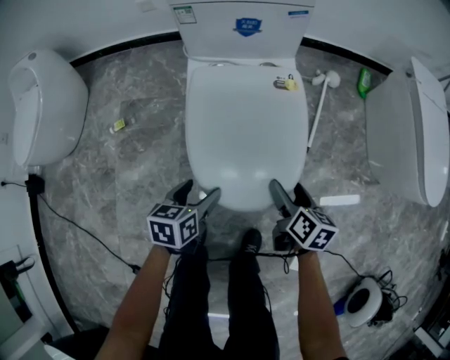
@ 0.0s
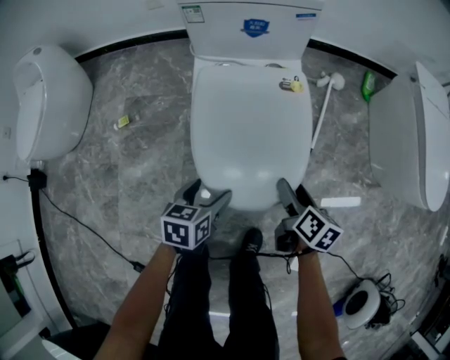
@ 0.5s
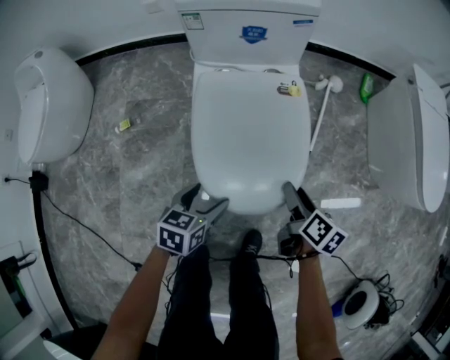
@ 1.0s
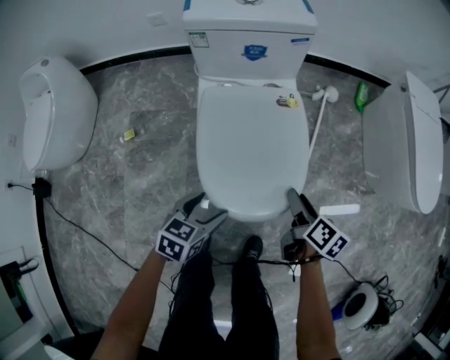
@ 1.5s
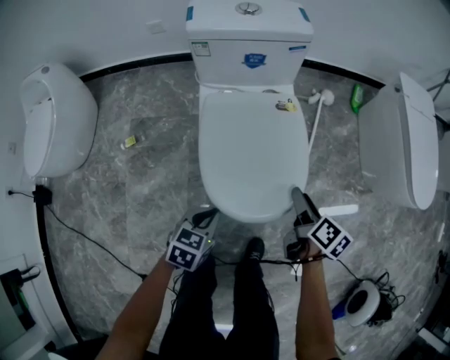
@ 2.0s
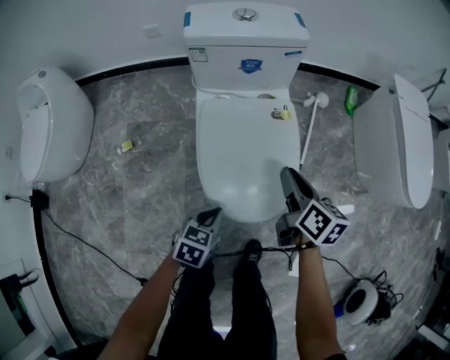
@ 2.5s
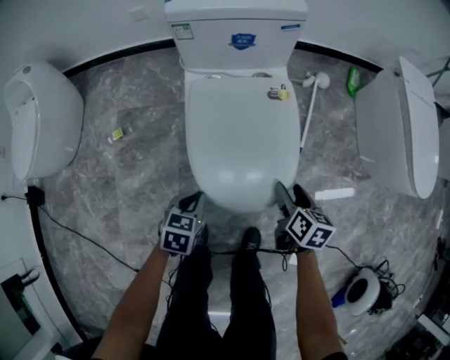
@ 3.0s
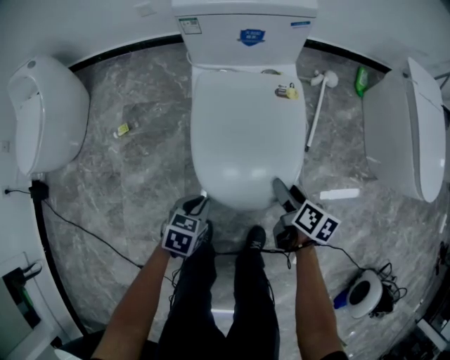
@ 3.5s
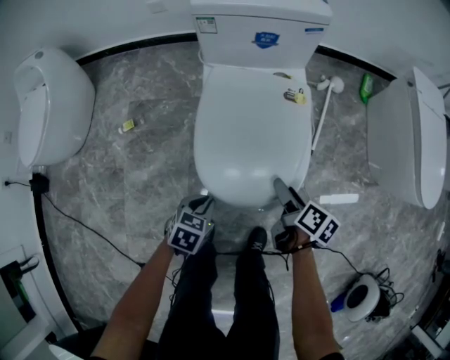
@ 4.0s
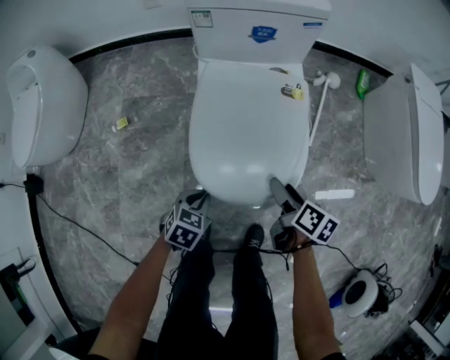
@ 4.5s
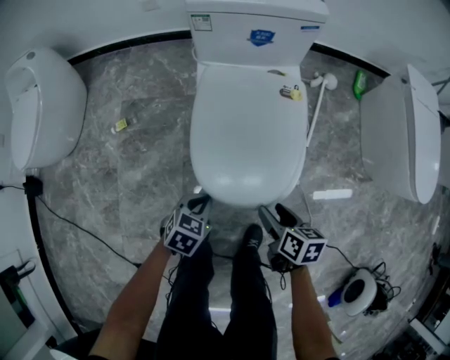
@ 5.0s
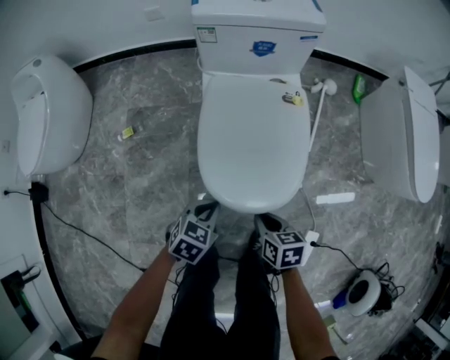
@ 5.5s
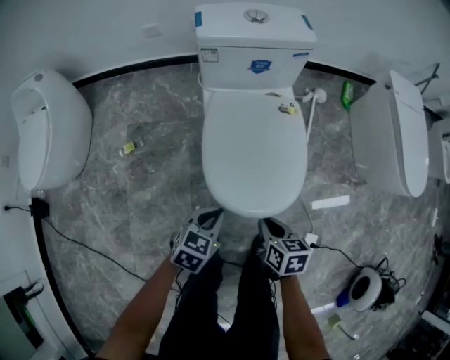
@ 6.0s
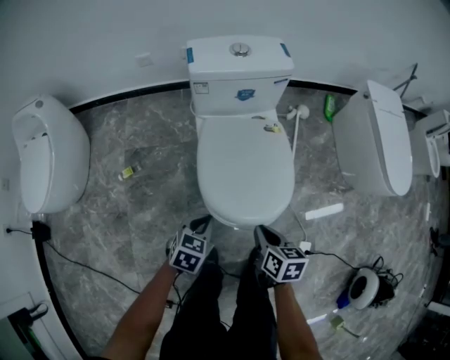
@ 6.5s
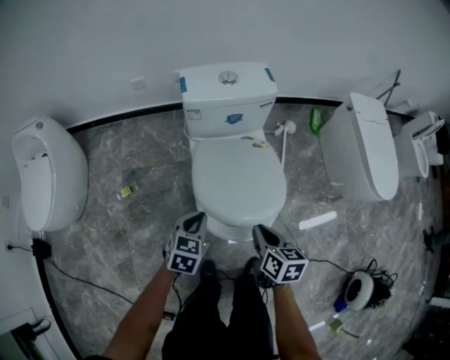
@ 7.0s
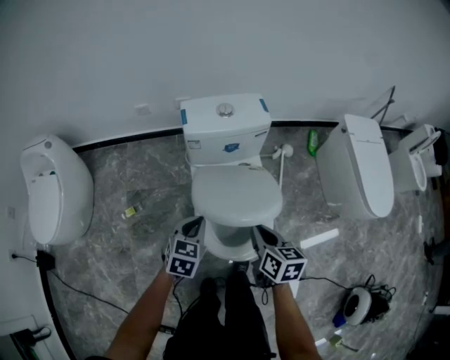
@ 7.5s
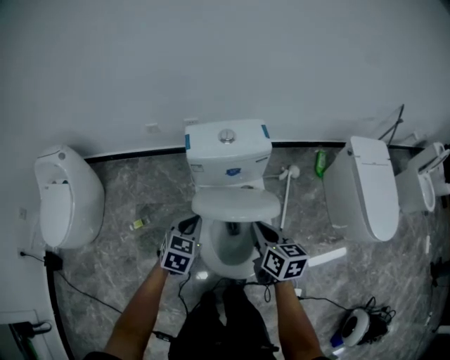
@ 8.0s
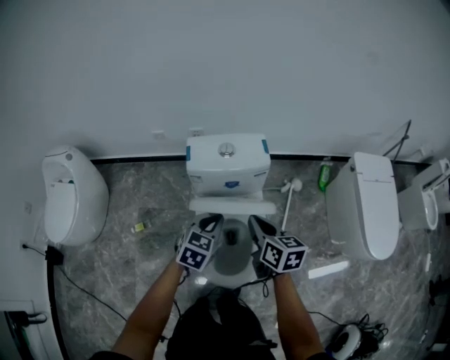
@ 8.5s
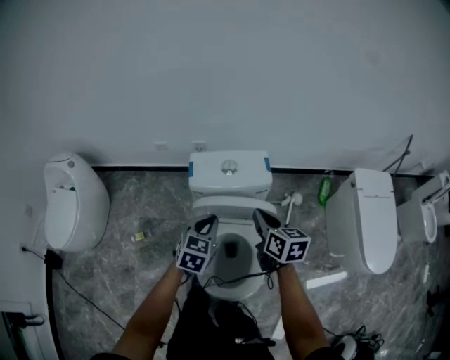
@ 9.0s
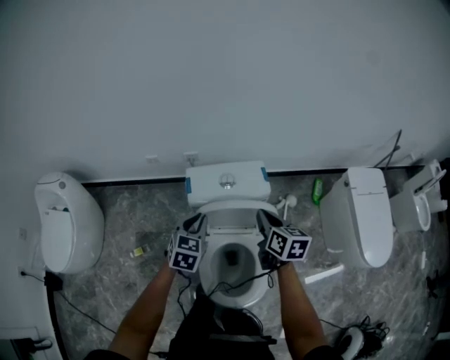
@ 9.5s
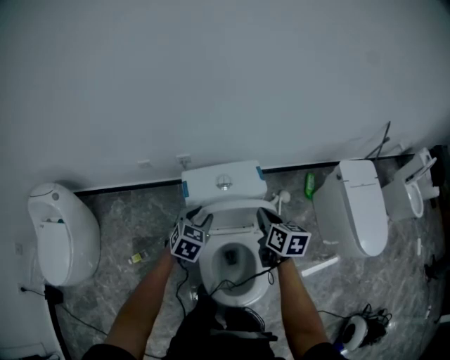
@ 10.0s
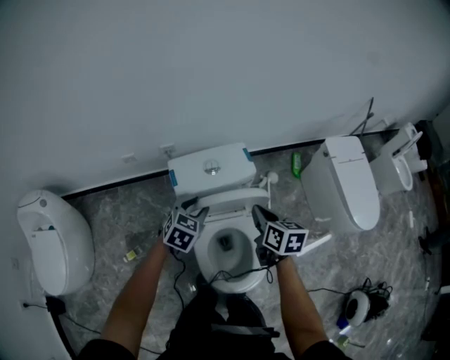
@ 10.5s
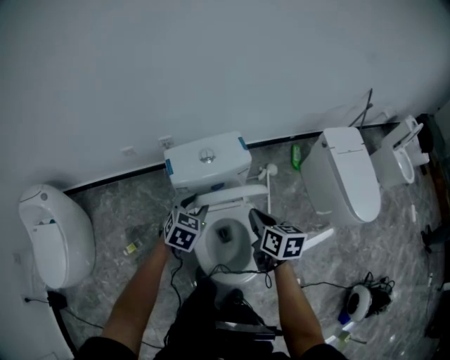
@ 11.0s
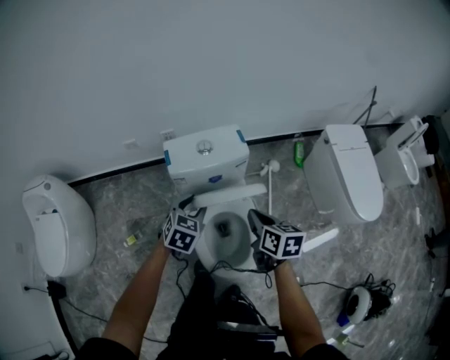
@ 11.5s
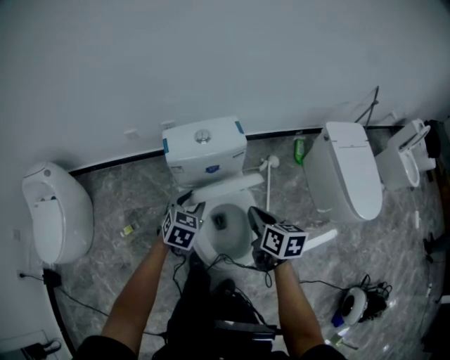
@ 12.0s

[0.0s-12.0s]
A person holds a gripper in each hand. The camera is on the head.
0.0s to 2.0s: The right gripper heads upward, covering some 10 cm; the left gripper shifts approximately 5 cm upward, turns by approximately 20 degrees, and closes its fingers.
2.0s to 4.0s: The right gripper heads downward and to the left, covering roughly 10 cm, and closes, then reopens, while the left gripper is displaced downward by approximately 5 cm.
4.0s to 6.0s: The left gripper travels upward by approximately 10 cm; the right gripper shifts roughly 10 cm backward and to the left, changes its angle by roughly 30 degrees, and closes its fingers.
6.0s to 8.0s: The right gripper moves upward and forward, approximately 30 cm, and changes its angle by approximately 20 degrees. The left gripper goes some 30 cm forward and upward.
8.0s to 10.0s: Both grippers travel together forward, roughly 15 cm. The left gripper opens up.
10.0s to 12.0s: The left gripper goes approximately 10 cm backward and to the right, while the right gripper moves backward, approximately 15 cm.

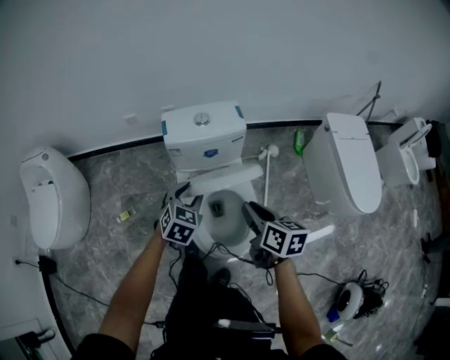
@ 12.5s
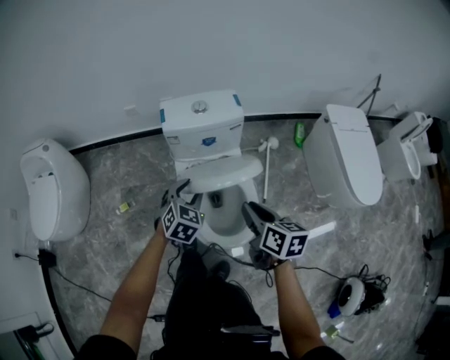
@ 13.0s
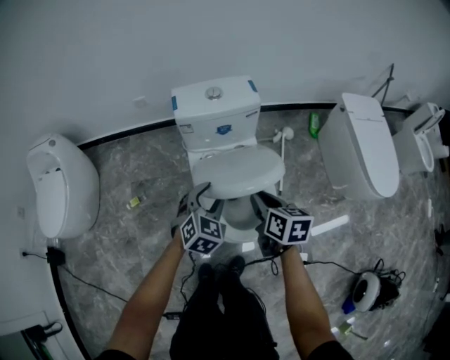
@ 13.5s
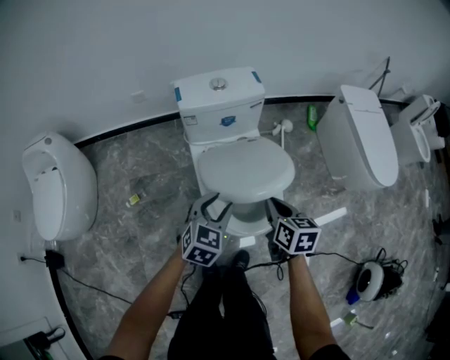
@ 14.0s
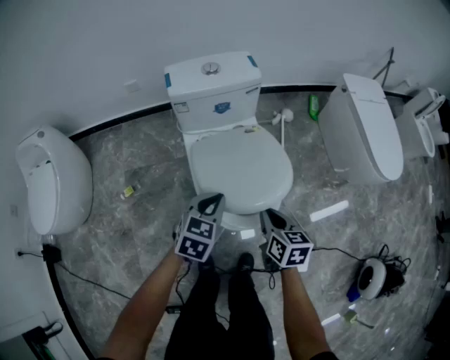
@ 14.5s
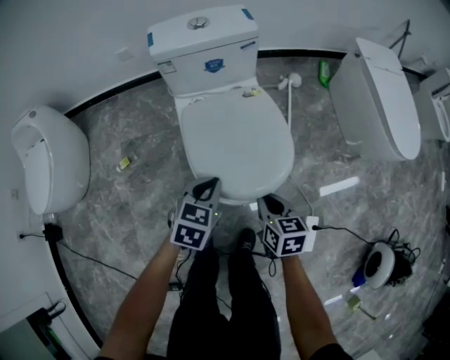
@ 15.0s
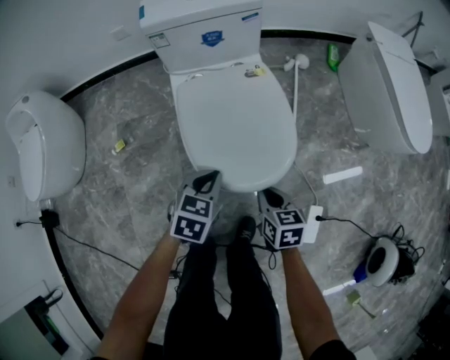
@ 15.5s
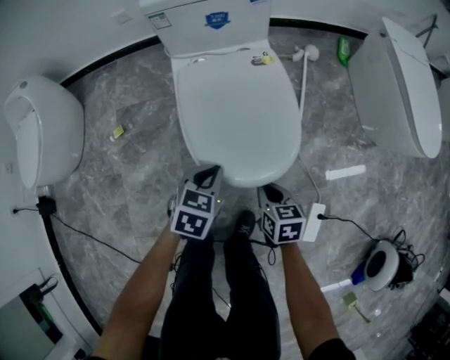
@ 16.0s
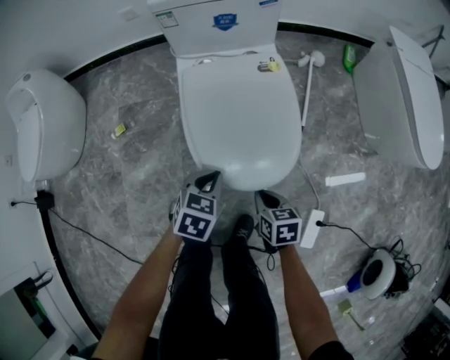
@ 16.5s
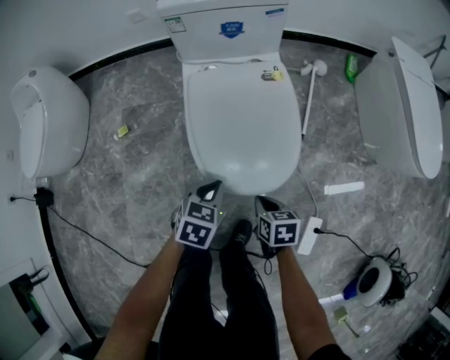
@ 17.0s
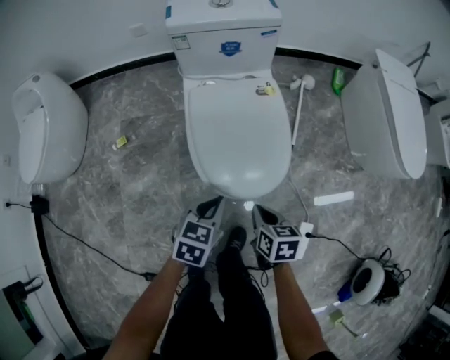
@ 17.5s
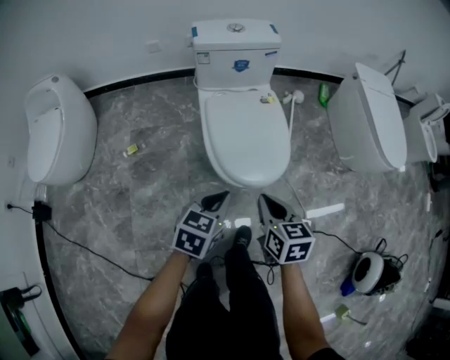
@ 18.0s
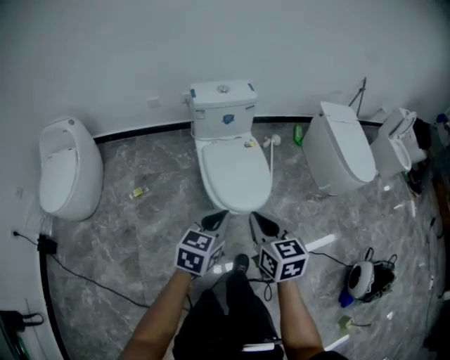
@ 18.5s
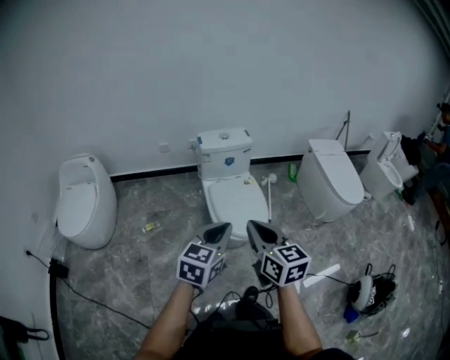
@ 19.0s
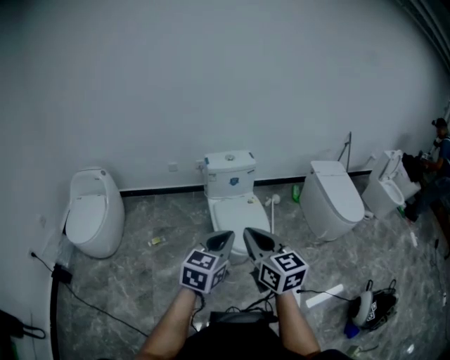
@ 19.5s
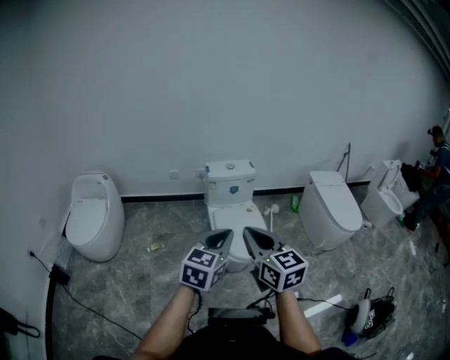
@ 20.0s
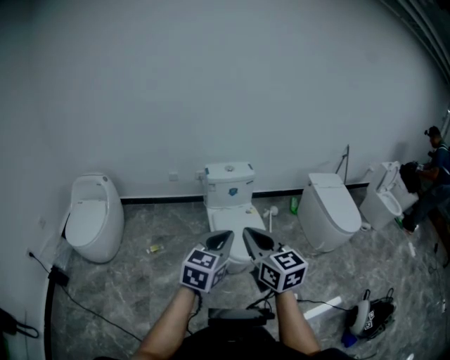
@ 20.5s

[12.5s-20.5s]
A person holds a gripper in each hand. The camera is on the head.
12.5s to 14.5s: The right gripper goes some 20 cm downward and backward. Meanwhile the left gripper travels backward and downward by some 15 cm, and closes.
14.5s to 16.5s: Both grippers travel together downward, about 20 cm. The right gripper rotates about 20 degrees.
16.5s to 18.5s: The right gripper travels upward by roughly 40 cm, and swivels approximately 30 degrees. The left gripper is displaced upward and backward by about 35 cm, and swivels approximately 30 degrees.
18.5s to 20.5s: The left gripper travels upward and backward by roughly 25 cm, while the right gripper shifts roughly 20 cm upward, and swivels approximately 20 degrees.

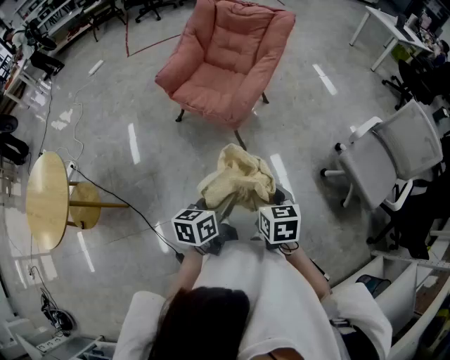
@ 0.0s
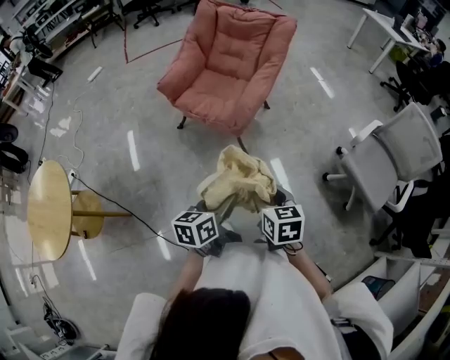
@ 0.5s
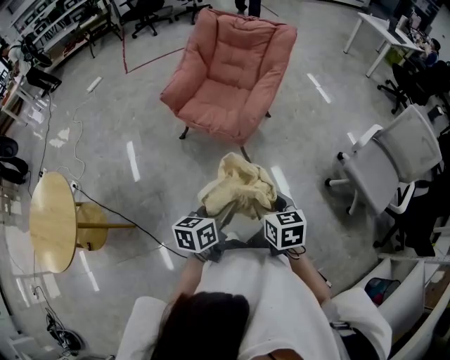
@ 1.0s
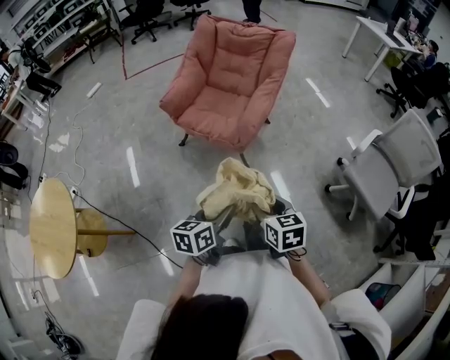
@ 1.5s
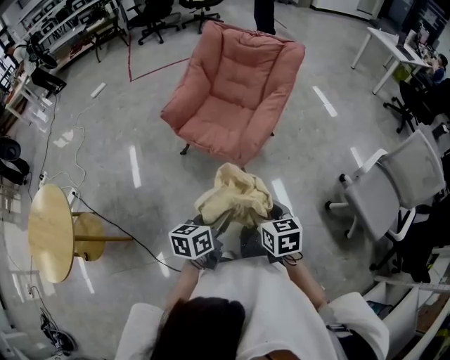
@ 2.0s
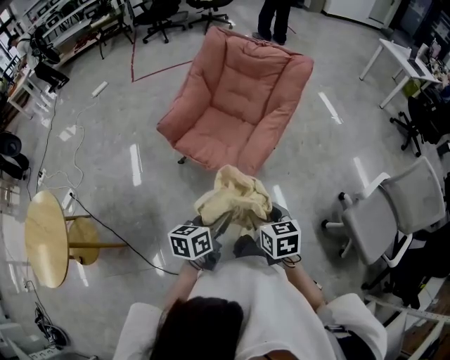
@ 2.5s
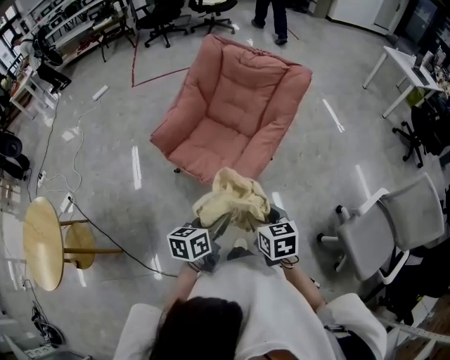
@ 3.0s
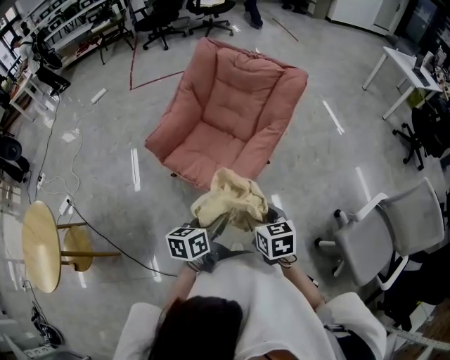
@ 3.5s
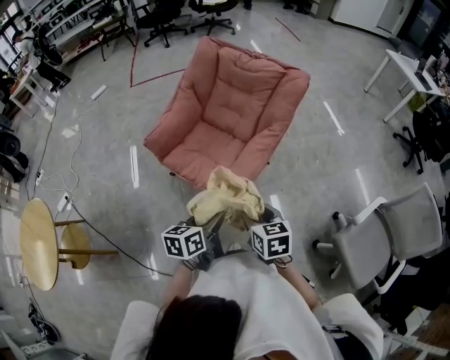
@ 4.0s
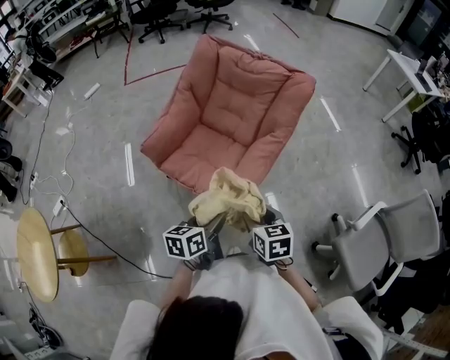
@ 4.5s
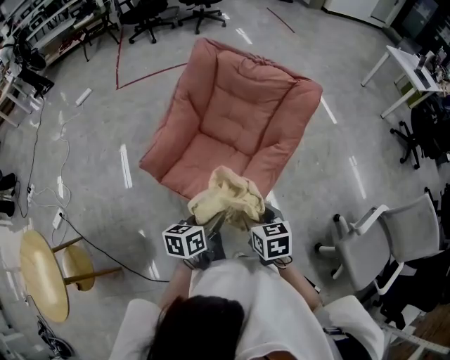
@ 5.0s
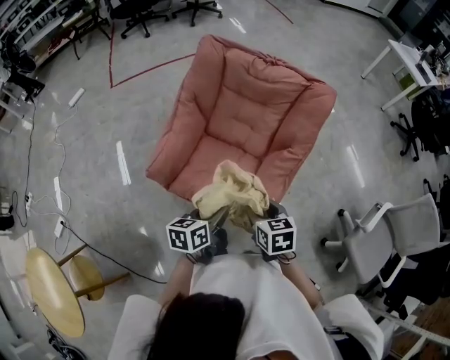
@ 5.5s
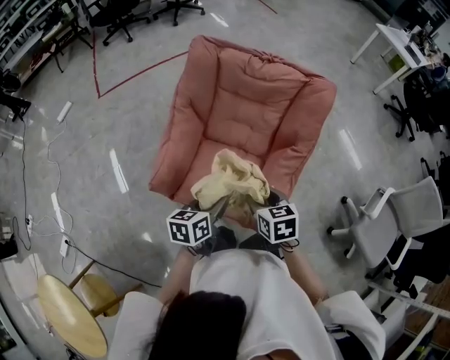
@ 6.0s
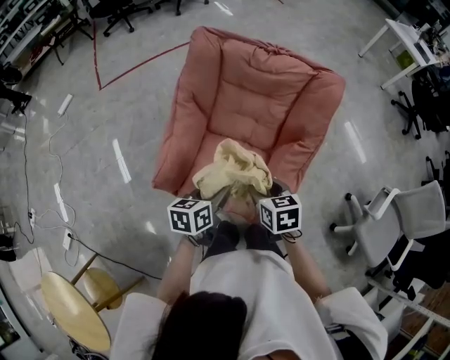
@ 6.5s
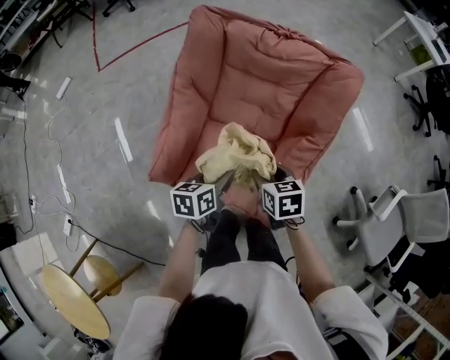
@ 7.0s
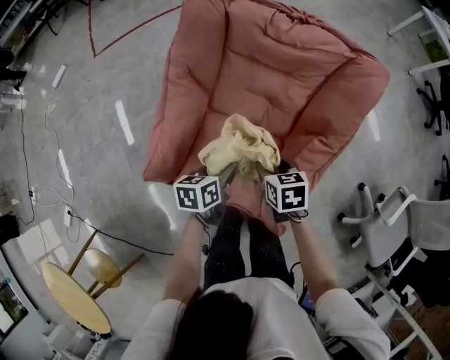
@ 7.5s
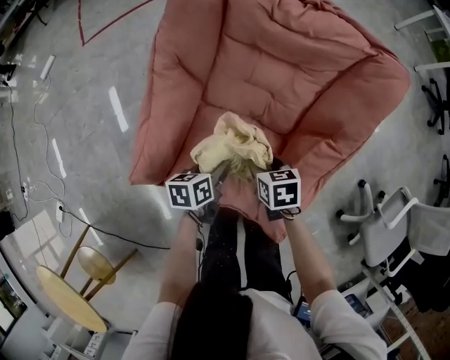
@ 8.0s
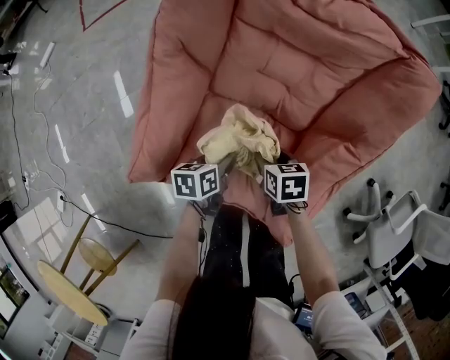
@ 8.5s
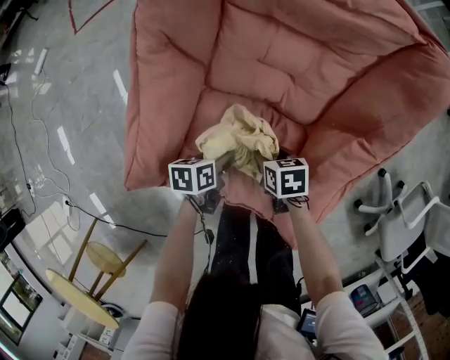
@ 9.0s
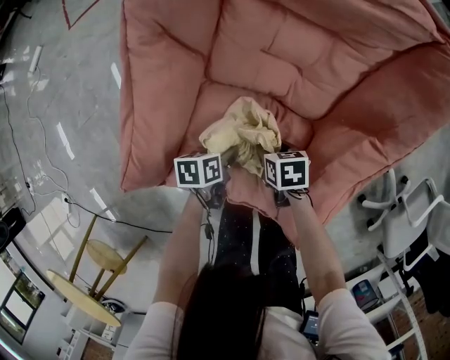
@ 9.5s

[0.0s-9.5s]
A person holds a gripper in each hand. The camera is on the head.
0.0s to 2.0s: Both grippers travel together forward and to the left, about 15 cm.
2.0s to 4.0s: The grippers both shift forward by approximately 25 cm.
4.0s to 5.5s: The two grippers go approximately 25 cm forward and to the left.
5.5s to 7.5s: The grippers both shift forward and downward by roughly 25 cm.
7.5s to 9.5s: Both grippers travel together downward, some 25 cm. The left gripper changes its angle by approximately 20 degrees.
